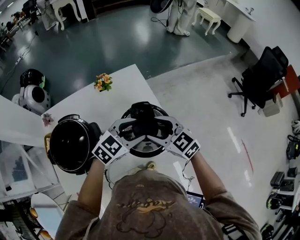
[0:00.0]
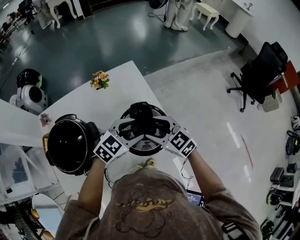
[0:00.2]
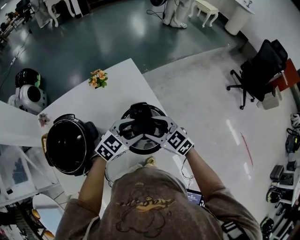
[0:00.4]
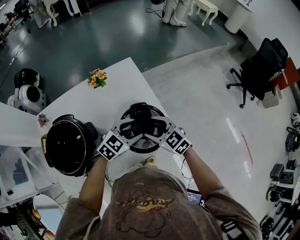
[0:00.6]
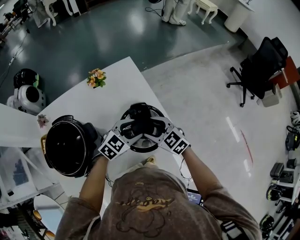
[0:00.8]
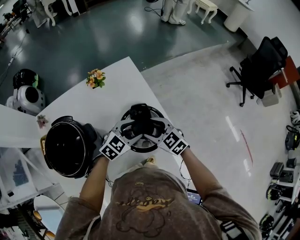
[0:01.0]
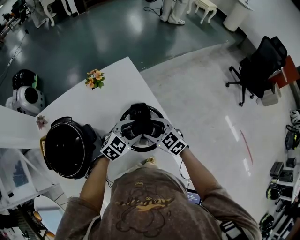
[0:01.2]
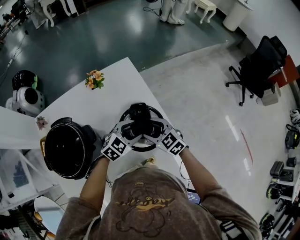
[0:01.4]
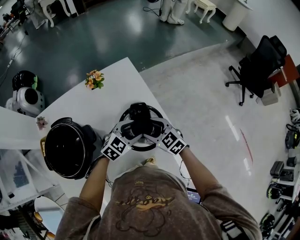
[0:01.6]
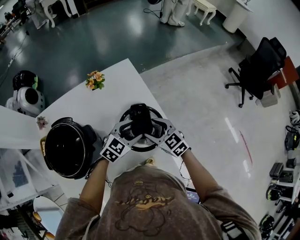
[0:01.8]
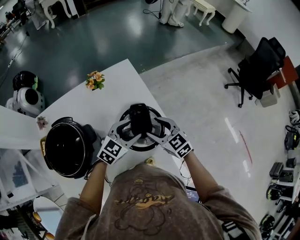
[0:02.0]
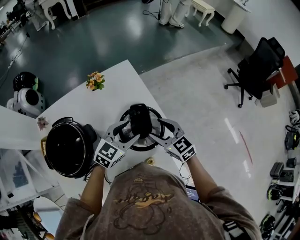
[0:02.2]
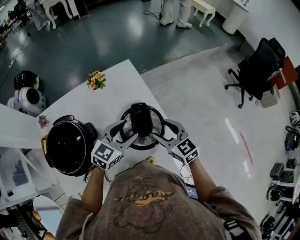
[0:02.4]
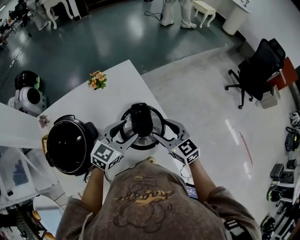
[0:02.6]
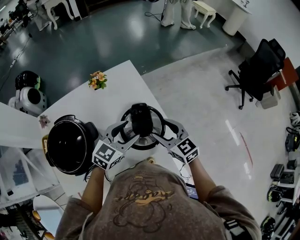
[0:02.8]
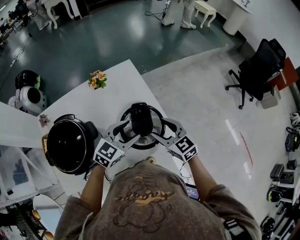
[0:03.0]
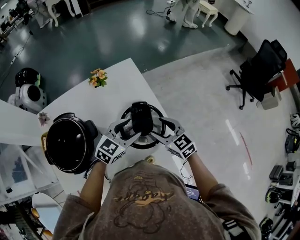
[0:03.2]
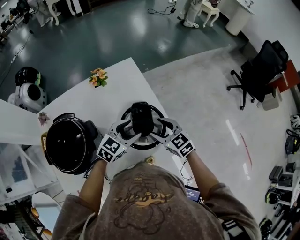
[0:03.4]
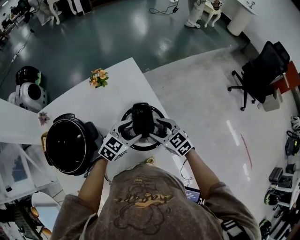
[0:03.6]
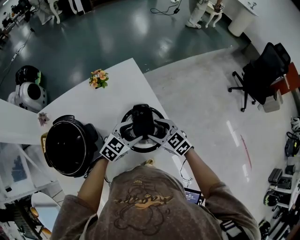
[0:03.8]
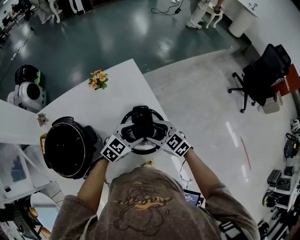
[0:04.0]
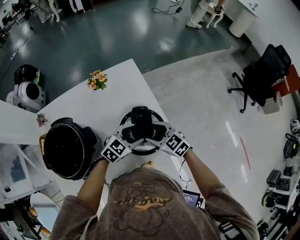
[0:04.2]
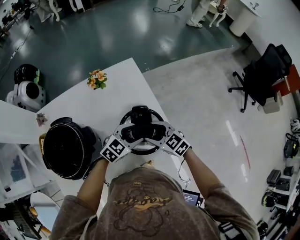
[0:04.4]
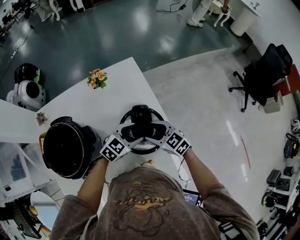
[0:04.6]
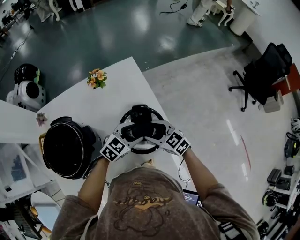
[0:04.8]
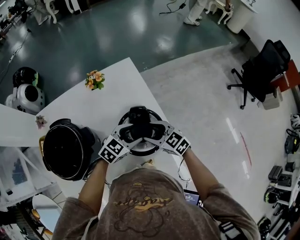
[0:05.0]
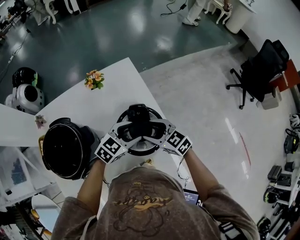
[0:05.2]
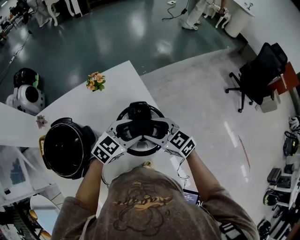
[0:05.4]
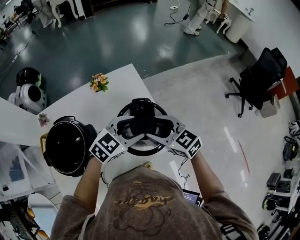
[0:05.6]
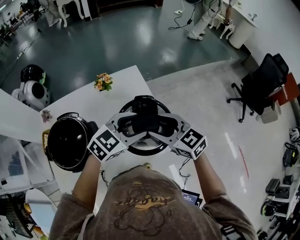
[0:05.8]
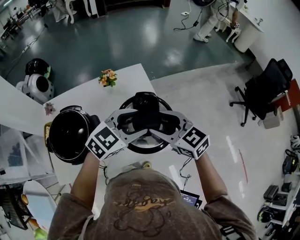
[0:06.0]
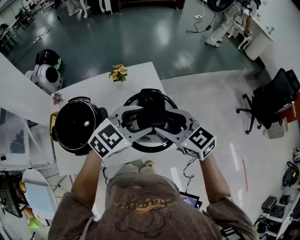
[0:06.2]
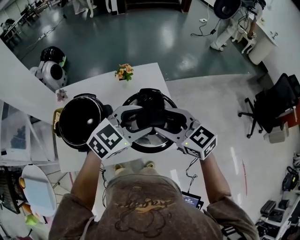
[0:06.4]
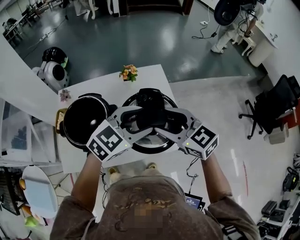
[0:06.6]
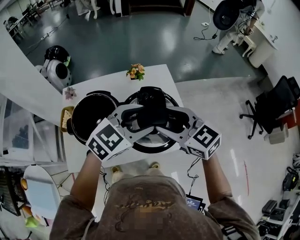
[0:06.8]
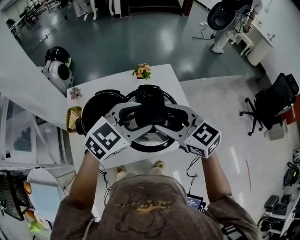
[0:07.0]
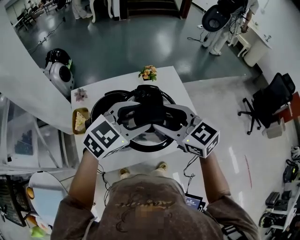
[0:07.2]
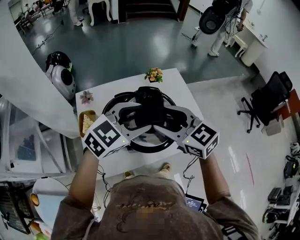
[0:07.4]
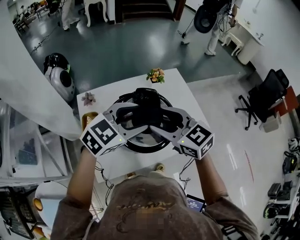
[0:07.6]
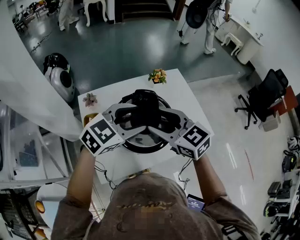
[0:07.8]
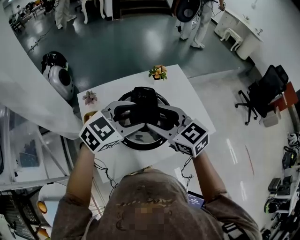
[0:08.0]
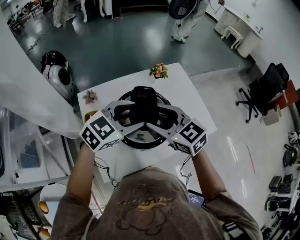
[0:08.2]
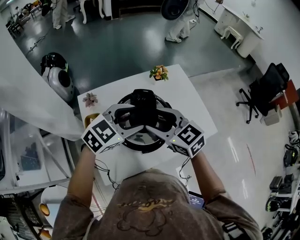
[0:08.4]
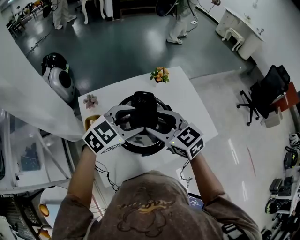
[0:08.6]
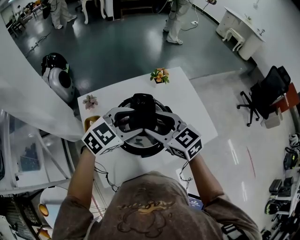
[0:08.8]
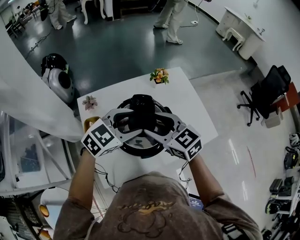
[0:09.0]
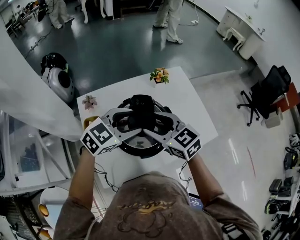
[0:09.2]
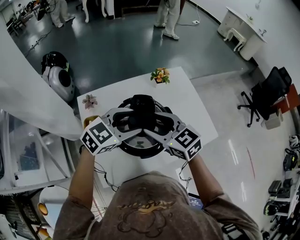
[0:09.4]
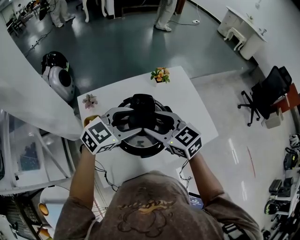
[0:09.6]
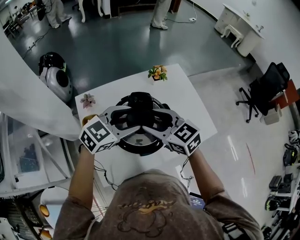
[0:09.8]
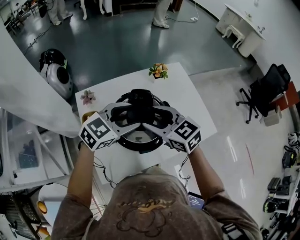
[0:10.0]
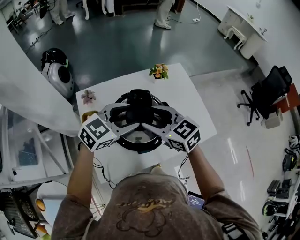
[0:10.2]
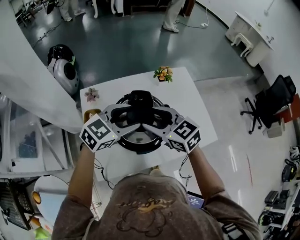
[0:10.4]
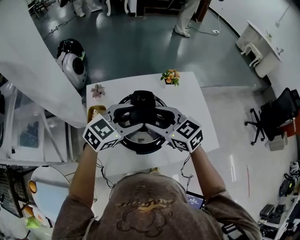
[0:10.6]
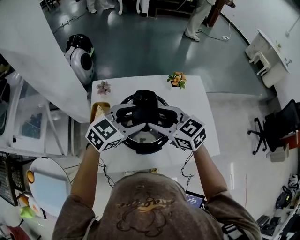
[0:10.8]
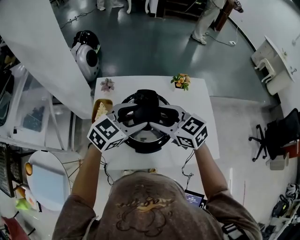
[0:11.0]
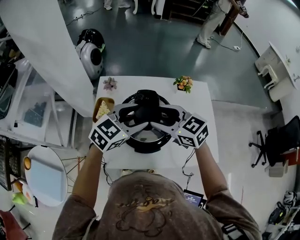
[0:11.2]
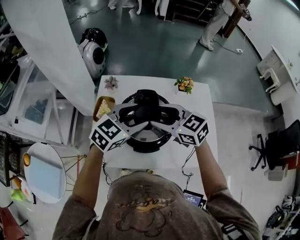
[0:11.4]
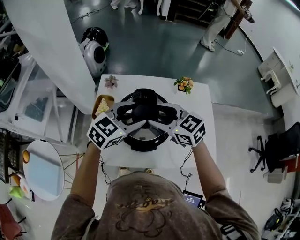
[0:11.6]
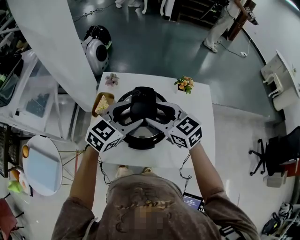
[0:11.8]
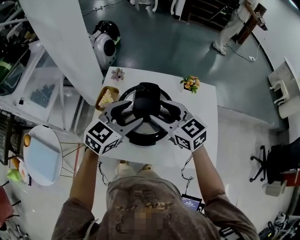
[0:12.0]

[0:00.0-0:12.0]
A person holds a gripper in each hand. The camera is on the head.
0:00.0 to 0:01.6: The grippers both shift downward by about 10 cm.
0:01.6 to 0:03.0: Both grippers travel together upward, roughly 5 cm.
0:03.0 to 0:04.4: The grippers both shift downward by approximately 10 cm.
0:04.4 to 0:06.0: Both grippers travel together upward, roughly 20 cm.
0:06.0 to 0:07.6: Both grippers move to the left, roughly 30 cm.
0:07.6 to 0:09.0: Both grippers travel together downward, approximately 5 cm.
0:09.0 to 0:10.4: The grippers move only a little.
0:10.4 to 0:12.0: The right gripper changes its angle by some 20 degrees, while the left gripper changes its angle by approximately 40 degrees.

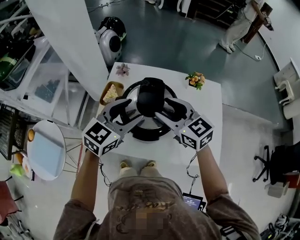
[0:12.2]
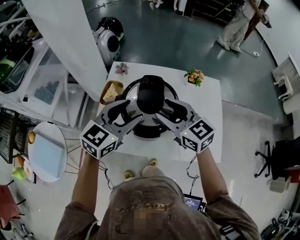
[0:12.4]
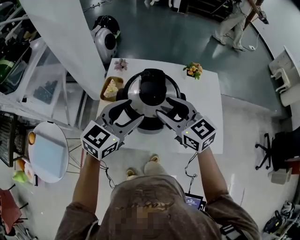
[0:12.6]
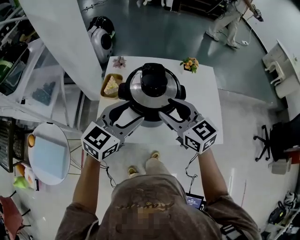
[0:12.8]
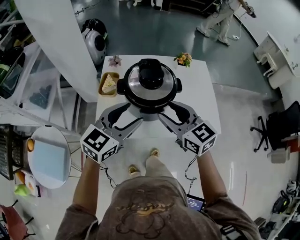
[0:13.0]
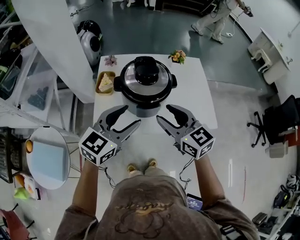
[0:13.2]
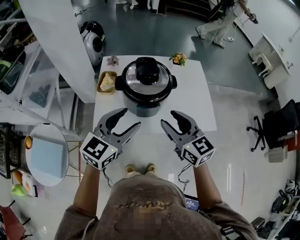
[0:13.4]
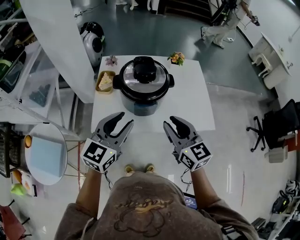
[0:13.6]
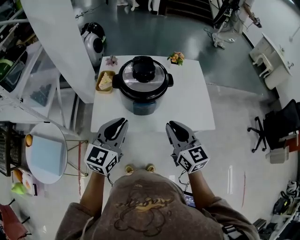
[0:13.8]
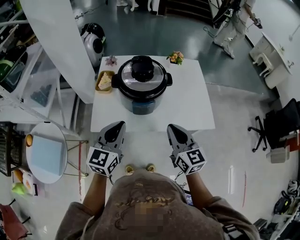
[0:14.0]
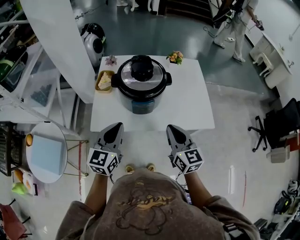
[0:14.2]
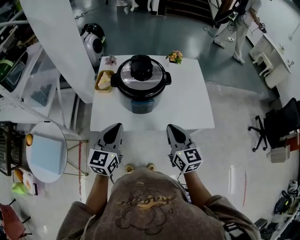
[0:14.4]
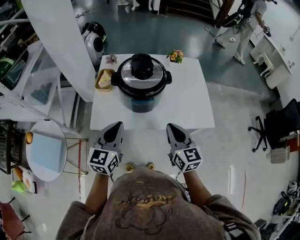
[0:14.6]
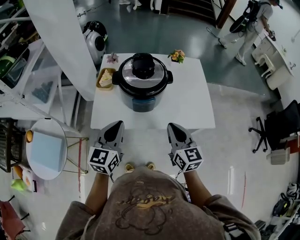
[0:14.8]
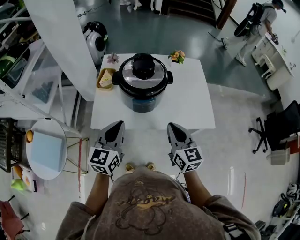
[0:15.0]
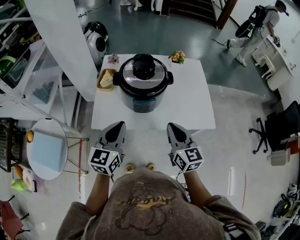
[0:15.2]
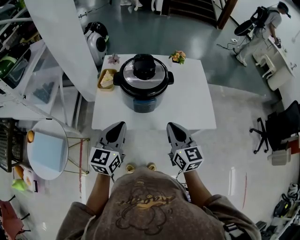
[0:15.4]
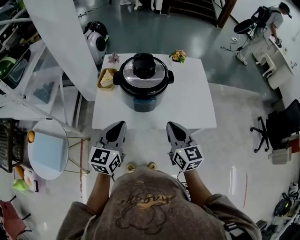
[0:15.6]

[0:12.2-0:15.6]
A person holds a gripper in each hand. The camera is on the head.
0:12.2 to 0:13.8: Both grippers travel together backward, some 20 cm. The left gripper closes, while the right gripper rotates some 30 degrees, and closes up.
0:13.8 to 0:15.6: The grippers stay close to where they were, moving slightly.

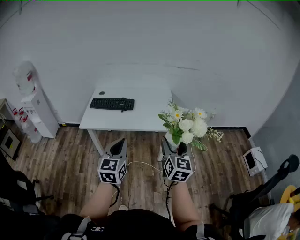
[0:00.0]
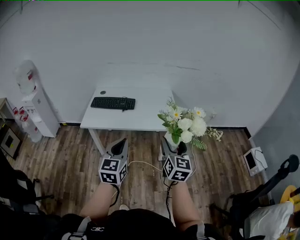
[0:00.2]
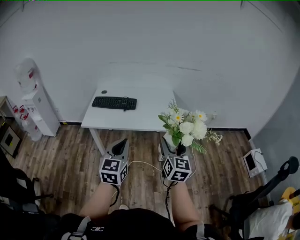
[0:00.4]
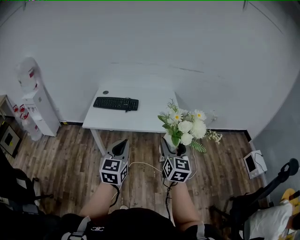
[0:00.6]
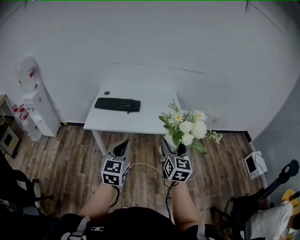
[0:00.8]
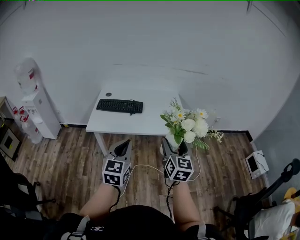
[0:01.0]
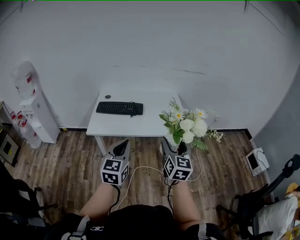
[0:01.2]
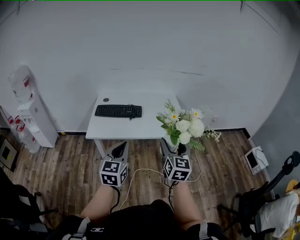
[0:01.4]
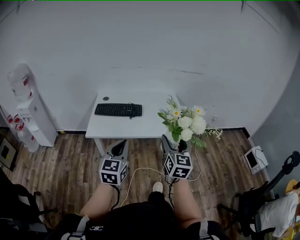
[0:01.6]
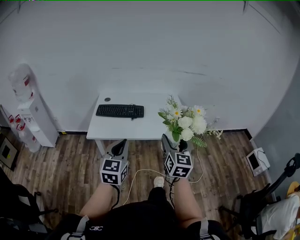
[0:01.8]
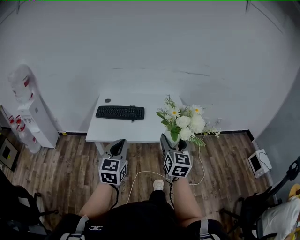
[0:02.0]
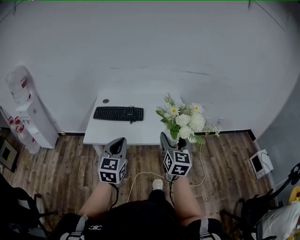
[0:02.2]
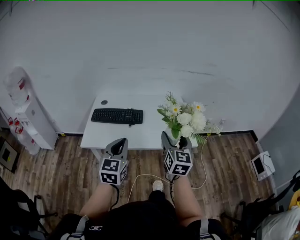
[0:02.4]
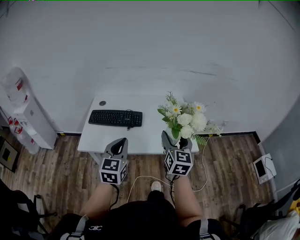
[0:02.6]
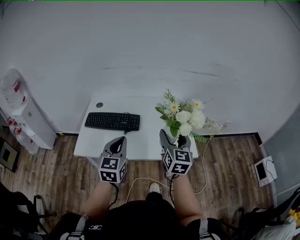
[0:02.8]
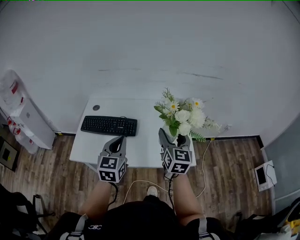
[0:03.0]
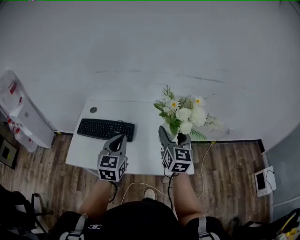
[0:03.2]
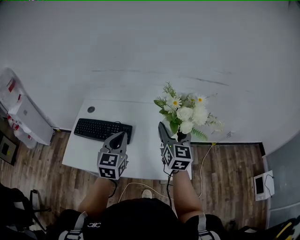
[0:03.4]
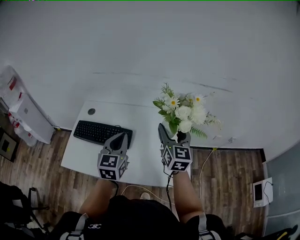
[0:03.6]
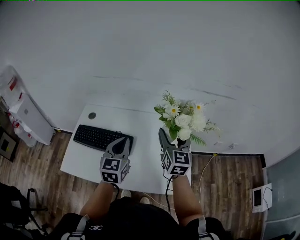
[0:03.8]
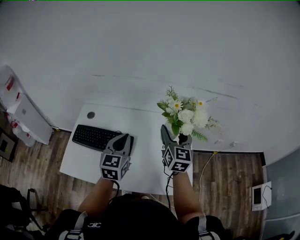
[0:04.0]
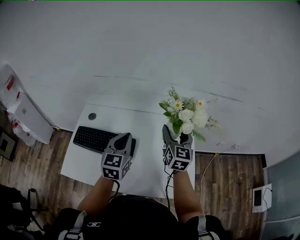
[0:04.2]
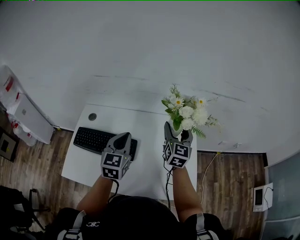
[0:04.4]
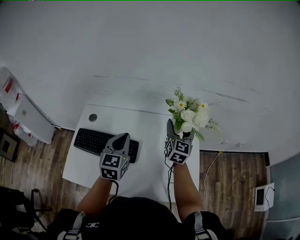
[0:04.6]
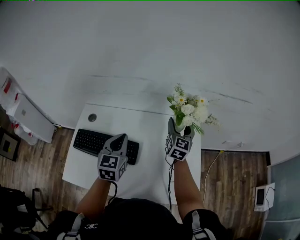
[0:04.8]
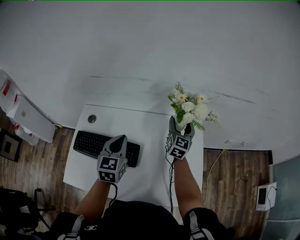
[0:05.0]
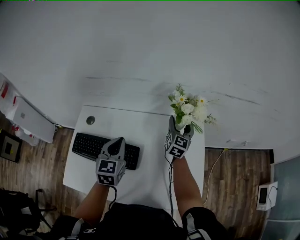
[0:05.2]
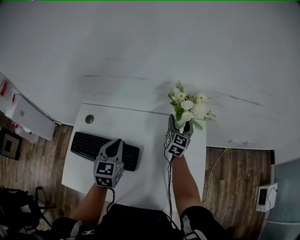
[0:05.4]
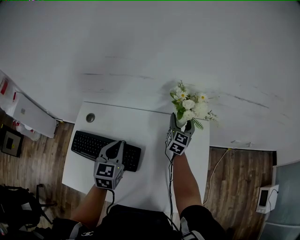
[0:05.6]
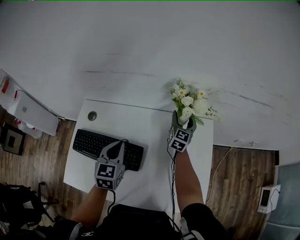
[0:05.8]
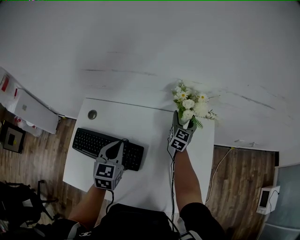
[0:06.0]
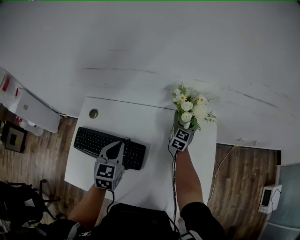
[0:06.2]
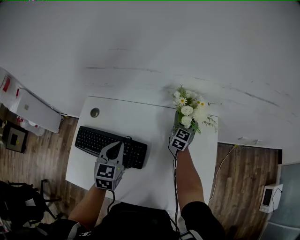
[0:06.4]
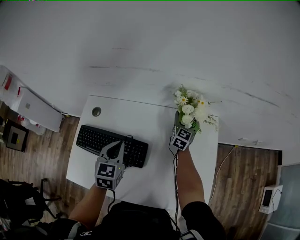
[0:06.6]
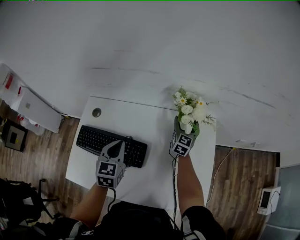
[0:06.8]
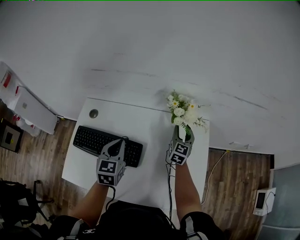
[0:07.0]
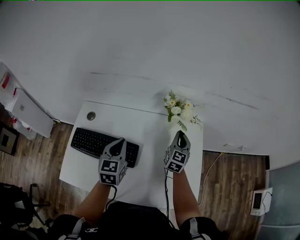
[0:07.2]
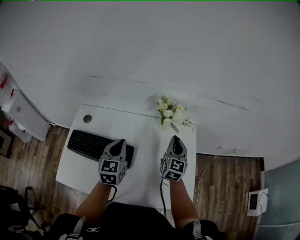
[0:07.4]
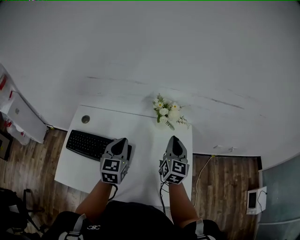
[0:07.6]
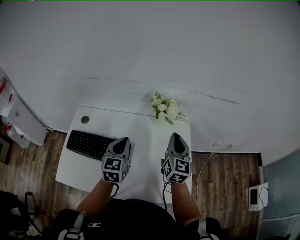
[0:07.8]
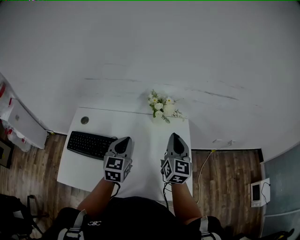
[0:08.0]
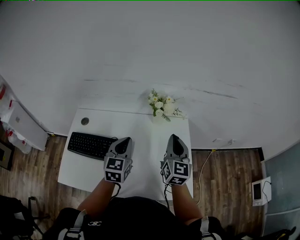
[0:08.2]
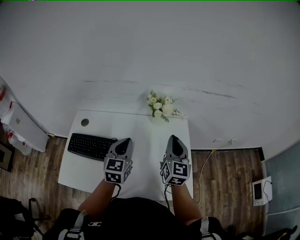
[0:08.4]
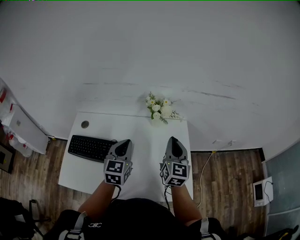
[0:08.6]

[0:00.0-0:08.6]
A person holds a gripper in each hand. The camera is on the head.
0:00.0 to 0:01.4: Both grippers move to the left, some 15 cm.
0:01.4 to 0:02.8: Both grippers move forward, about 35 cm.
0:02.8 to 0:04.4: Both grippers travel together forward, roughly 40 cm.
0:04.4 to 0:05.8: The left gripper heads forward, downward and to the left, covering roughly 20 cm; the right gripper moves forward and downward, some 30 cm.
0:05.8 to 0:07.2: The left gripper moves some 5 cm, while the right gripper shifts approximately 15 cm backward, and closes up.
0:07.2 to 0:08.6: The left gripper travels to the right, upward and backward by about 10 cm; the right gripper goes roughly 20 cm backward and upward.
